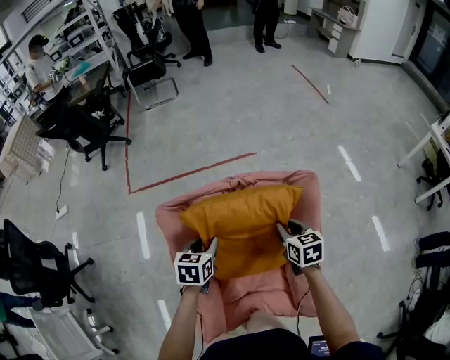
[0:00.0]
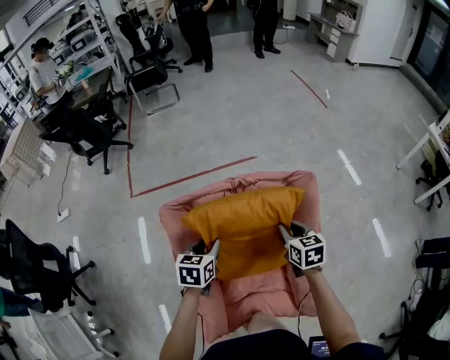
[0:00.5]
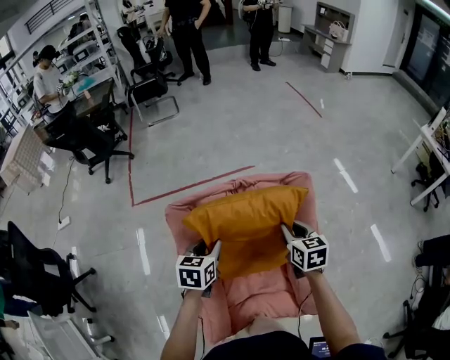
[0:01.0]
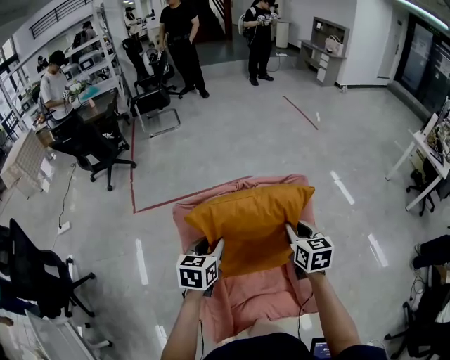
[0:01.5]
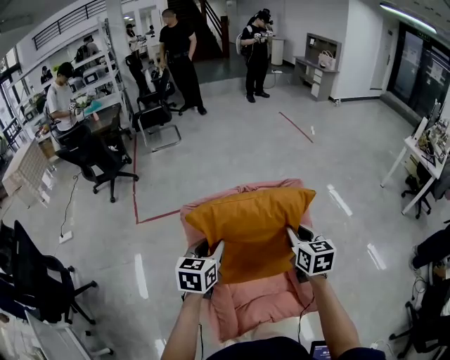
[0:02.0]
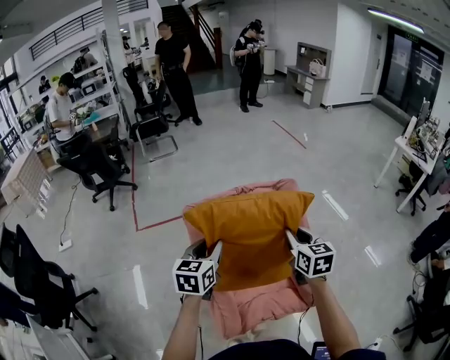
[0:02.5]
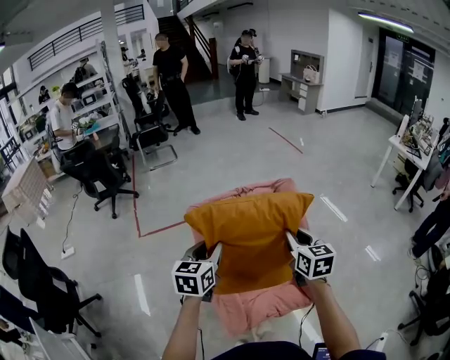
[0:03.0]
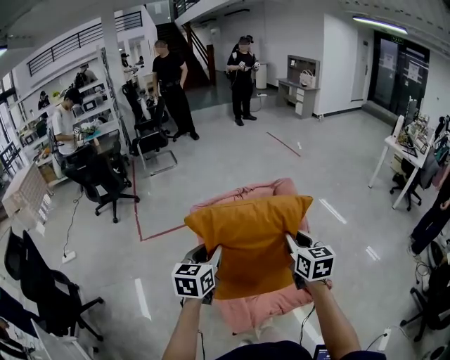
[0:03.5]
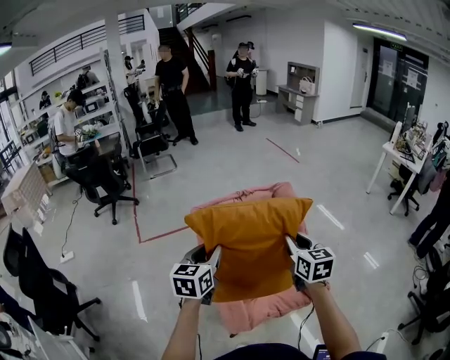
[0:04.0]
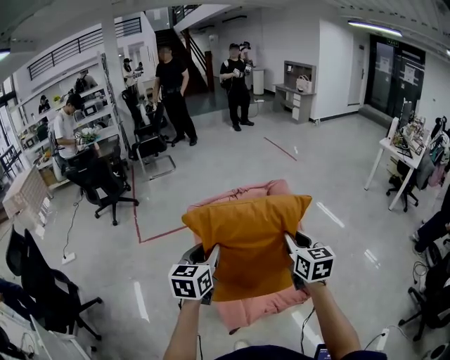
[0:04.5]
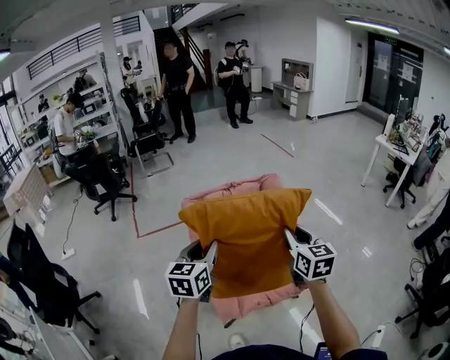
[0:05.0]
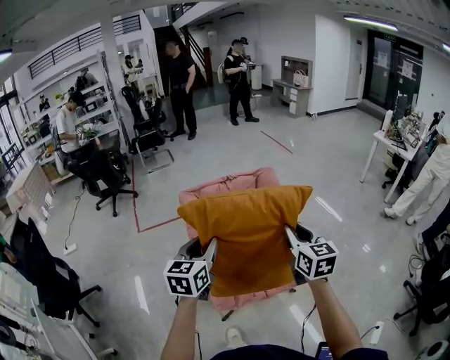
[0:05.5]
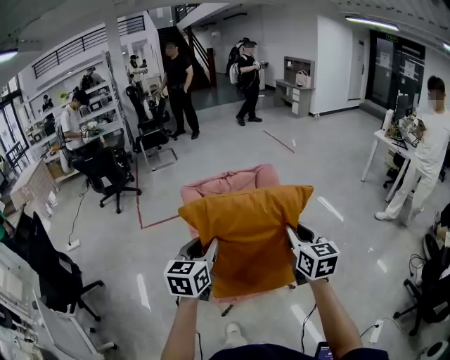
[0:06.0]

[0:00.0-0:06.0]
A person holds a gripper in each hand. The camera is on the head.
0:00.0 to 0:02.0: Both grippers move upward and backward, roughly 20 cm.
0:02.0 to 0:04.0: The left gripper travels backward and upward by some 15 cm; the right gripper heads backward, covering approximately 20 cm.
0:04.0 to 0:06.0: The grippers both shift backward and to the right by roughly 20 cm.

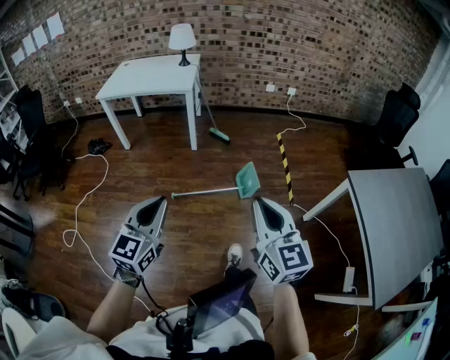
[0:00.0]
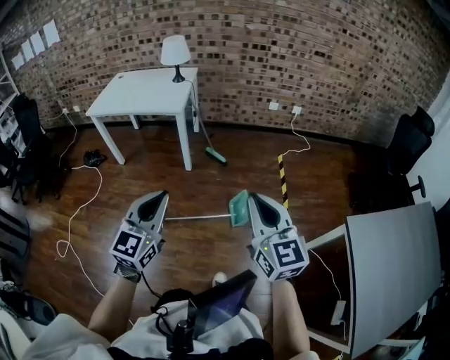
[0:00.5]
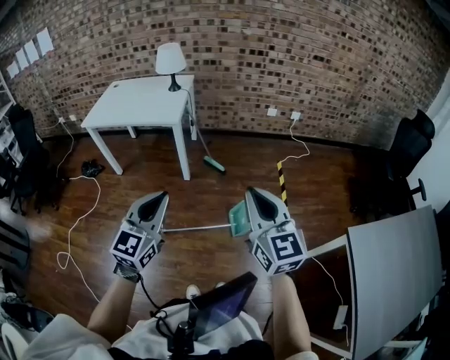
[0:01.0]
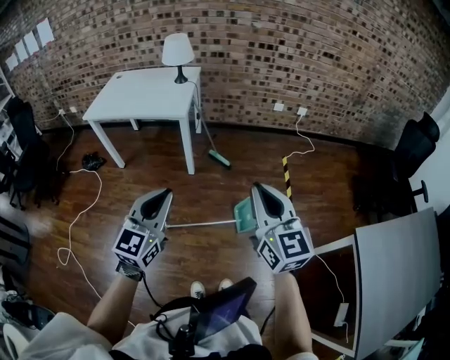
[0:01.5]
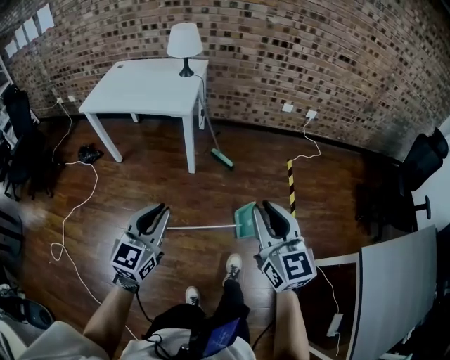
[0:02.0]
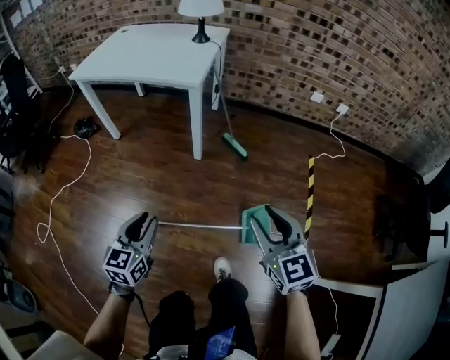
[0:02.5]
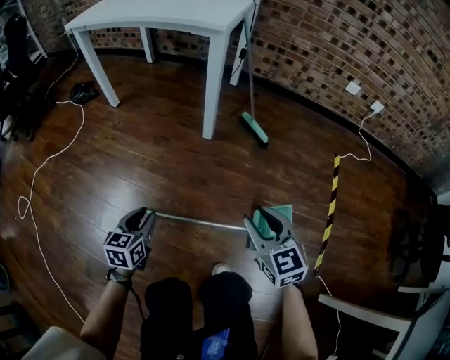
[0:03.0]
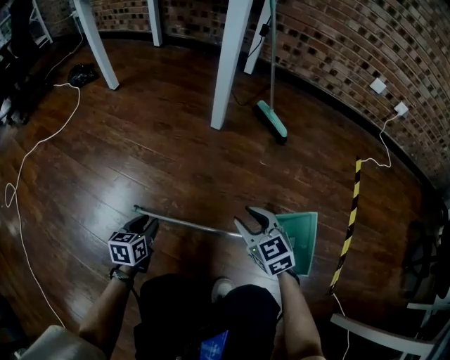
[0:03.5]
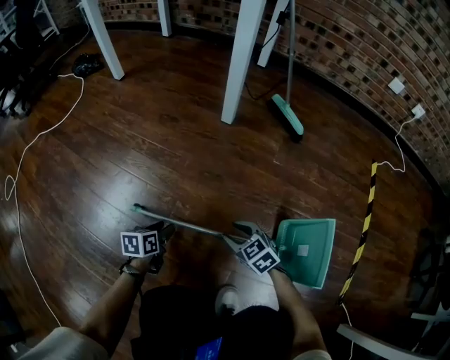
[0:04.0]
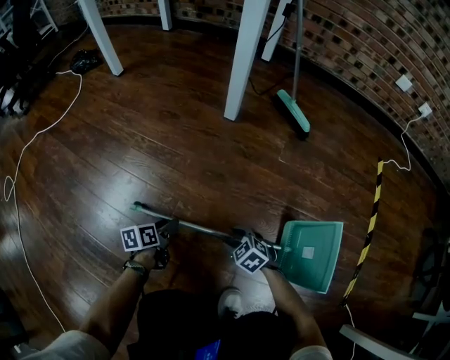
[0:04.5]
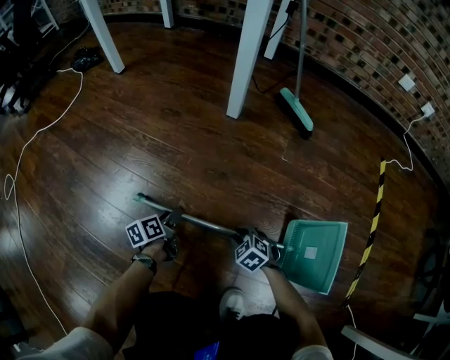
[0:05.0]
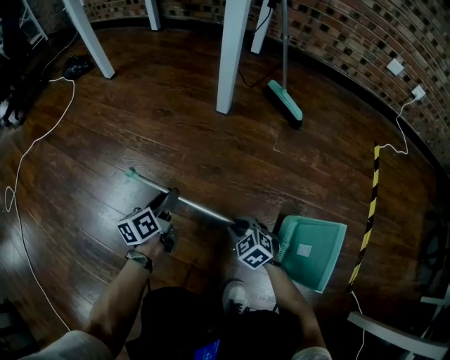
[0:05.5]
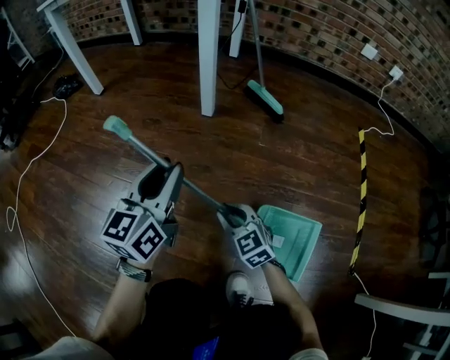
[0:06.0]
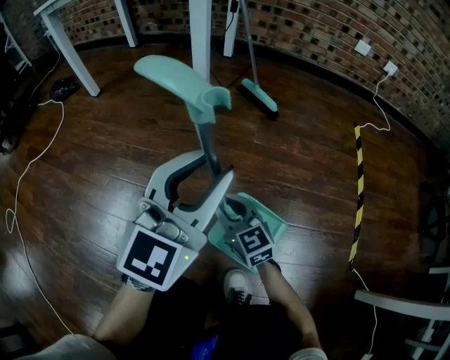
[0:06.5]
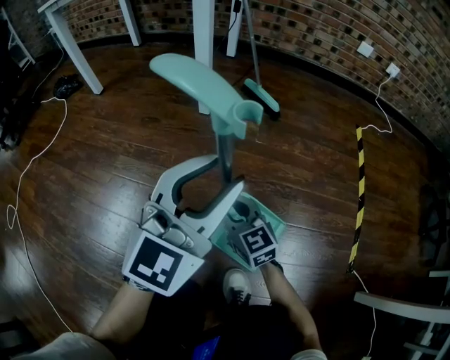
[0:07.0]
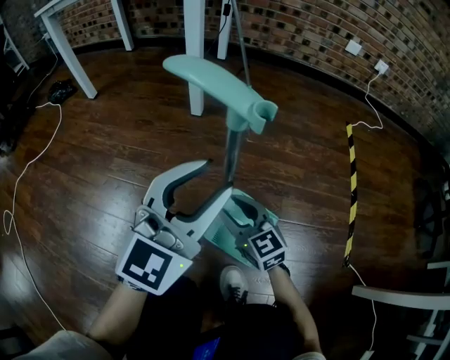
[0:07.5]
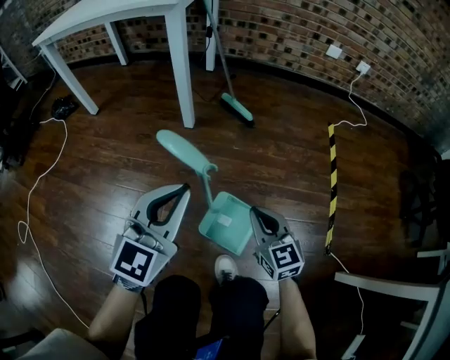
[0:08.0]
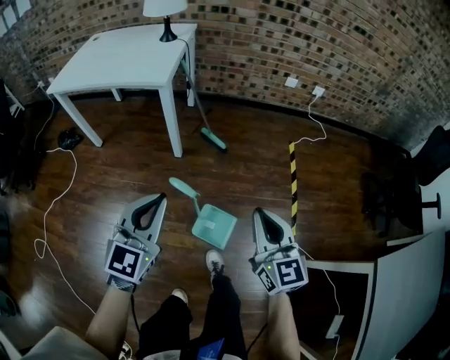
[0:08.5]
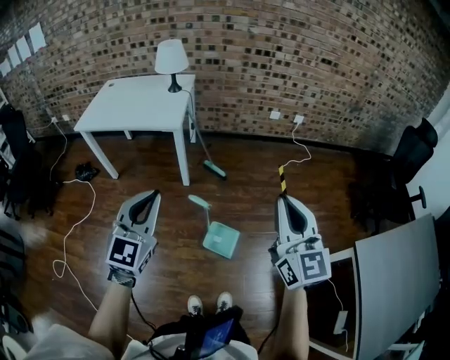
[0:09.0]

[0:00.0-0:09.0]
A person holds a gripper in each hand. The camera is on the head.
0:00.0 to 0:02.0: Both grippers move forward, roughly 35 cm.
0:02.0 to 0:04.5: The two grippers go about 1 m downward. The left gripper rotates around the line of its fingers by about 60 degrees, counterclockwise from behind, and opens up. Meanwhile the right gripper tilts its fingers approximately 60 degrees downward, and opens up.
0:04.5 to 0:07.0: The left gripper goes about 50 cm upward and to the right, and rotates around the line of its fingers by about 70 degrees, clockwise from behind, while the right gripper shifts roughly 25 cm upward, angles its fingers upward, by roughly 40 degrees, and closes up.
0:07.0 to 0:09.0: The left gripper goes about 60 cm upward, and closes its fingers. The right gripper heads upward, covering approximately 90 cm, swivels approximately 40 degrees, and closes up.

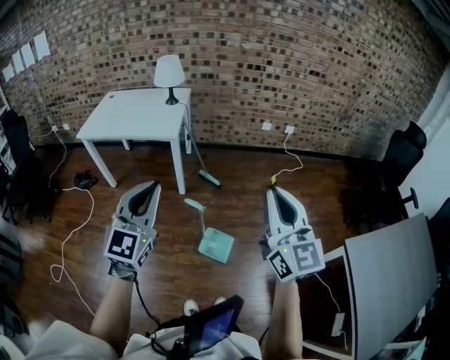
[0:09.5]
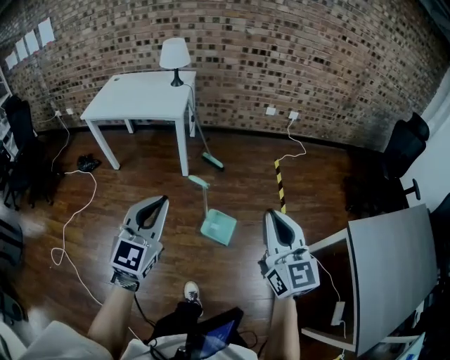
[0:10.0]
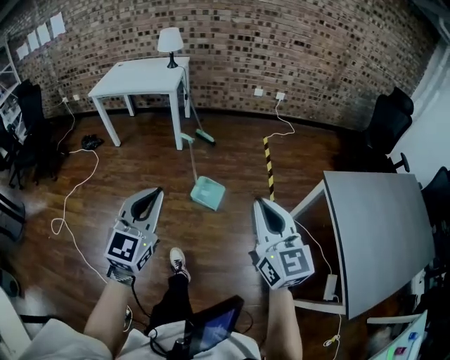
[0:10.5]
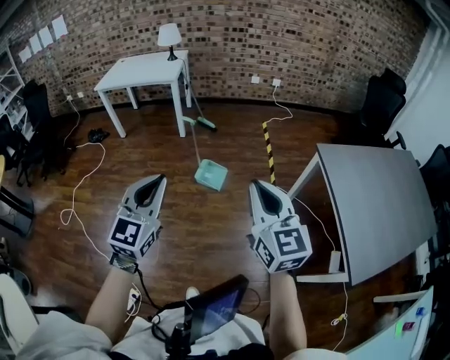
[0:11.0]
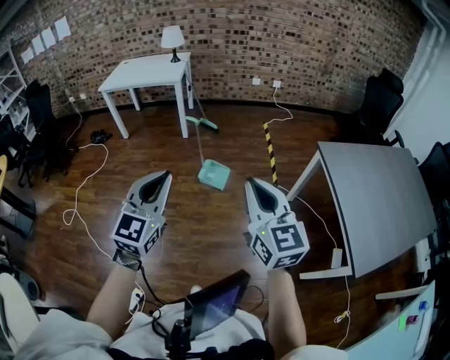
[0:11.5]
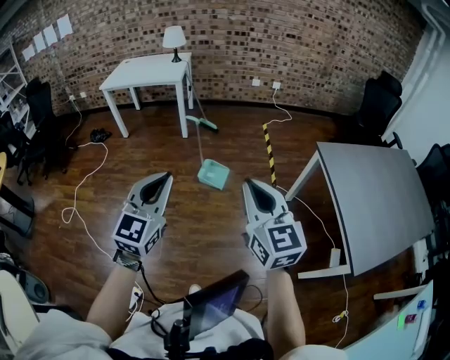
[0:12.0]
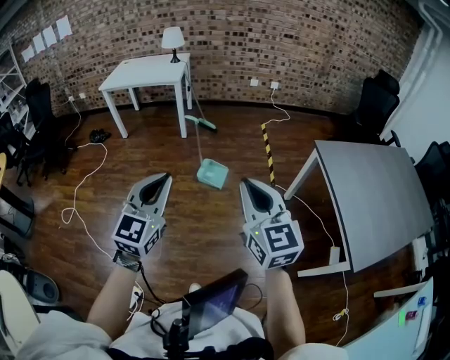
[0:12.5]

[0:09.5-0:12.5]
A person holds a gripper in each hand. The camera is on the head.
0:09.5 to 0:11.0: The pair of grippers is taken backward, roughly 50 cm.
0:11.0 to 0:12.5: The left gripper heads backward, covering about 5 cm, while the right gripper shifts about 10 cm backward and to the left.

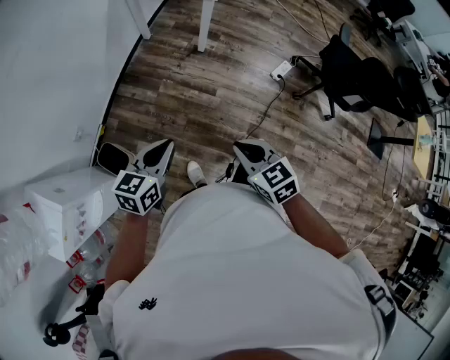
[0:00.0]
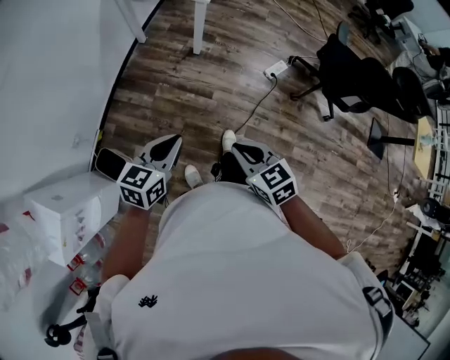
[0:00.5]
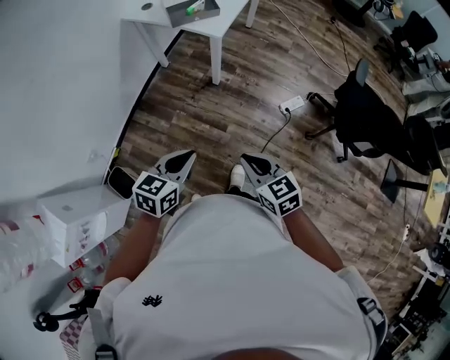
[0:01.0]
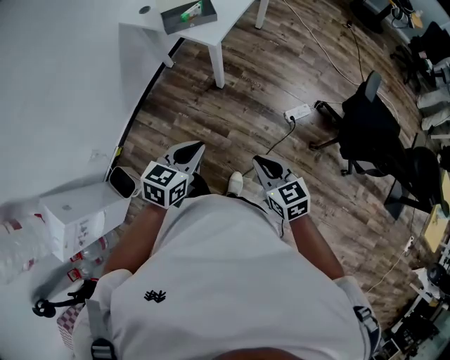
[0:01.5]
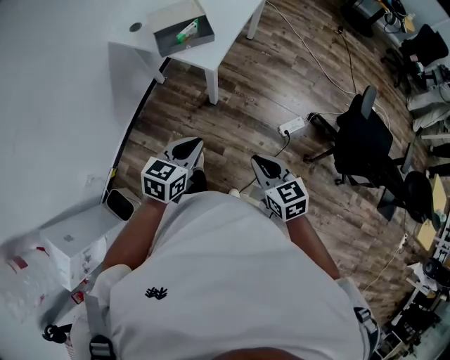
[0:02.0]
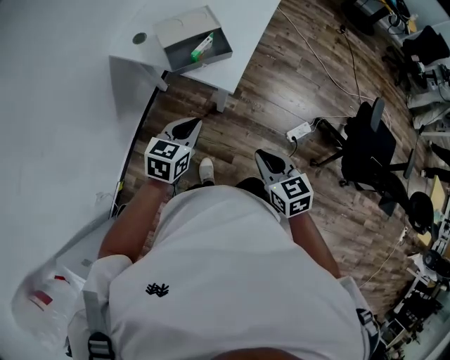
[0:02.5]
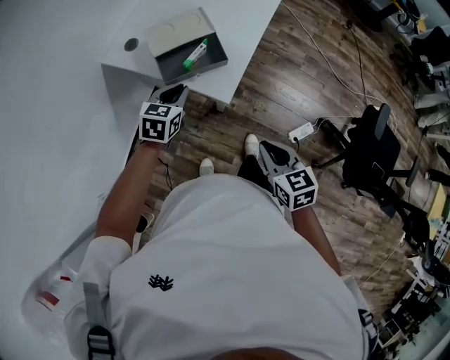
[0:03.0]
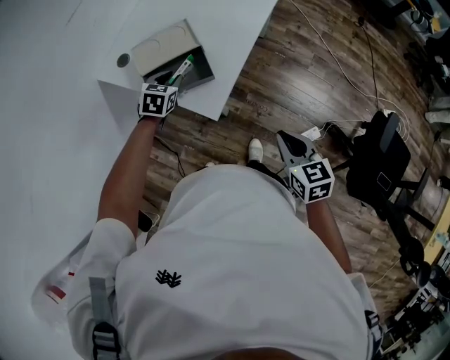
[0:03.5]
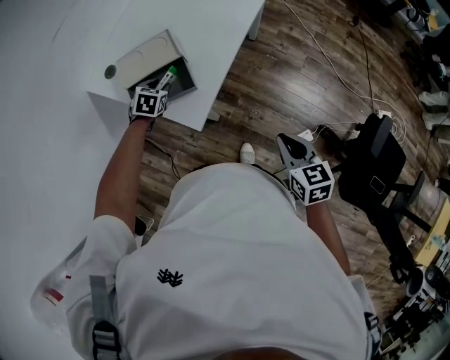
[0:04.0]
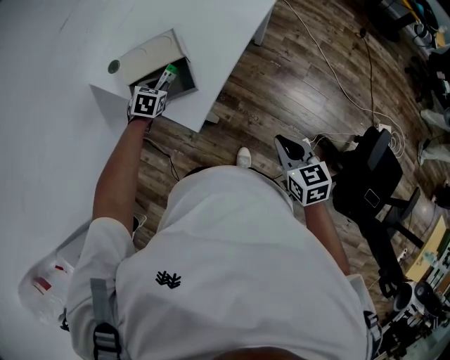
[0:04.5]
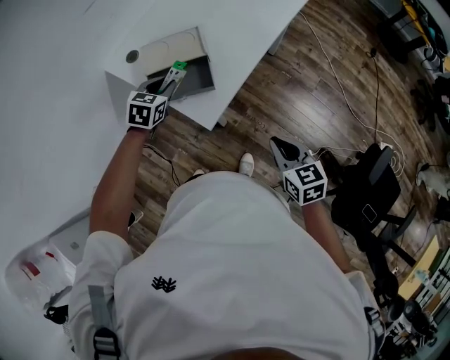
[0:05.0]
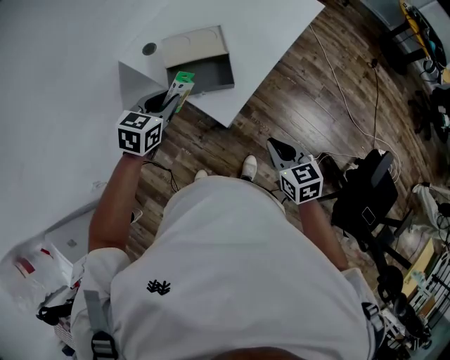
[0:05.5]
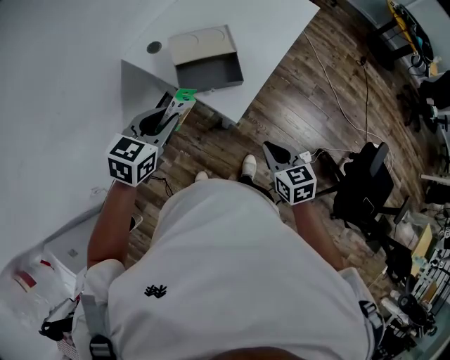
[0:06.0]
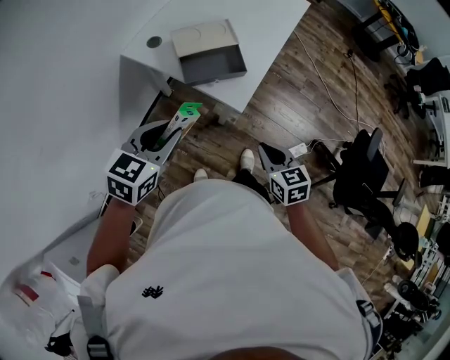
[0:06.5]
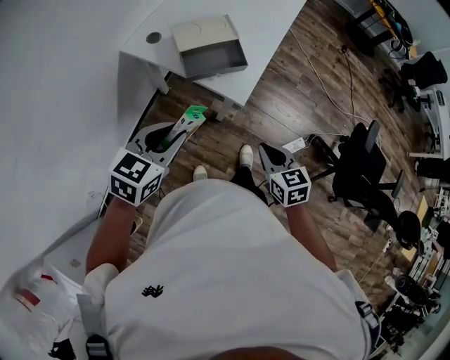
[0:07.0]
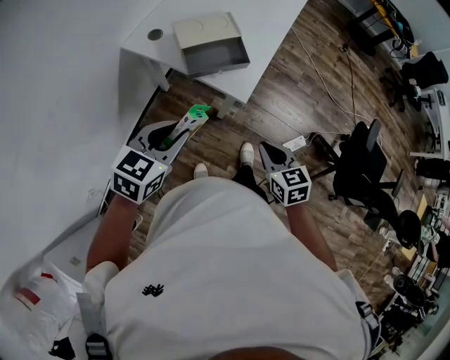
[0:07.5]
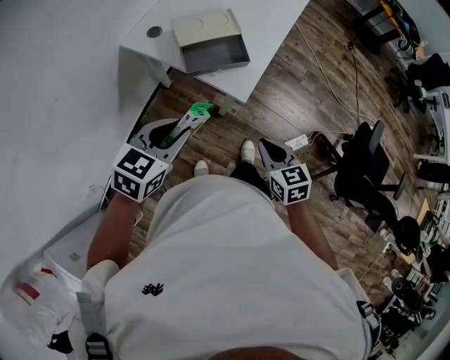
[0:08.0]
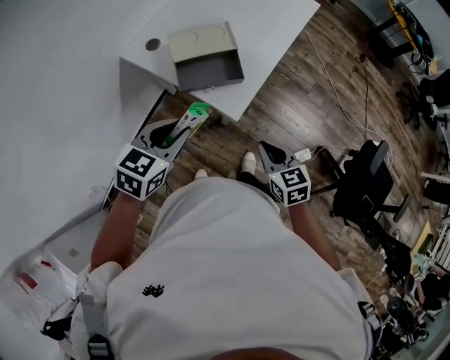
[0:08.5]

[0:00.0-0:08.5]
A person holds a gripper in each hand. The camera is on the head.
0:00.0 to 0:02.0: Both grippers move forward and to the right, approximately 35 cm.
0:02.0 to 0:04.0: The left gripper moves forward, approximately 50 cm, turns by approximately 40 degrees, and opens up. Meanwhile the right gripper travels forward and to the right by approximately 30 cm.
0:04.0 to 0:06.5: The left gripper shifts about 35 cm backward and upward, and swivels about 30 degrees. The right gripper travels to the left by some 20 cm.
0:06.5 to 0:08.5: The left gripper changes place by some 5 cm.
